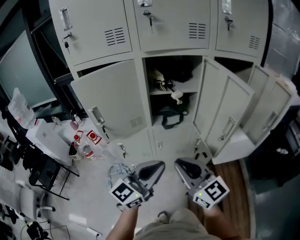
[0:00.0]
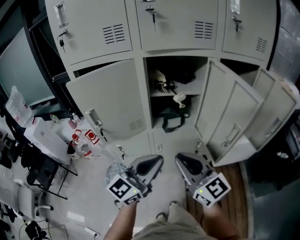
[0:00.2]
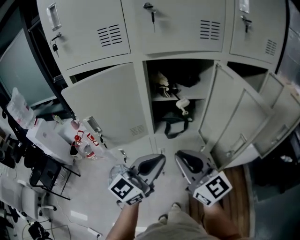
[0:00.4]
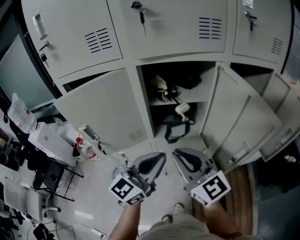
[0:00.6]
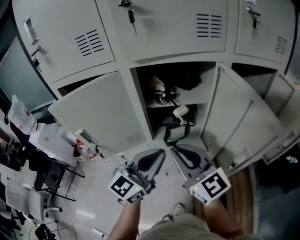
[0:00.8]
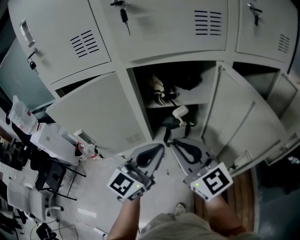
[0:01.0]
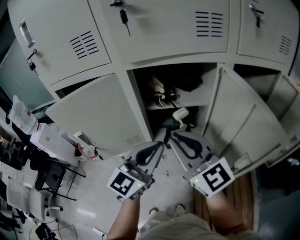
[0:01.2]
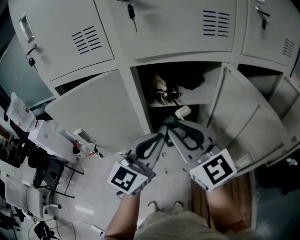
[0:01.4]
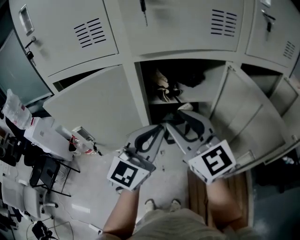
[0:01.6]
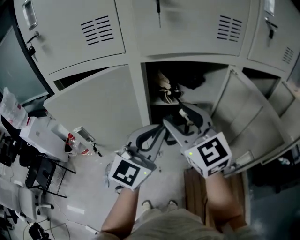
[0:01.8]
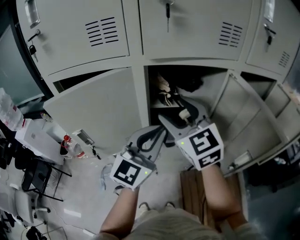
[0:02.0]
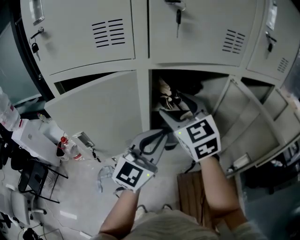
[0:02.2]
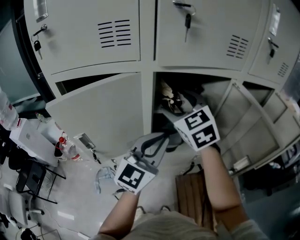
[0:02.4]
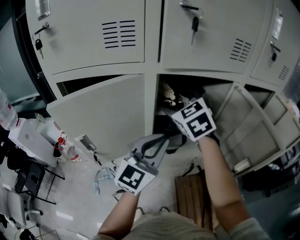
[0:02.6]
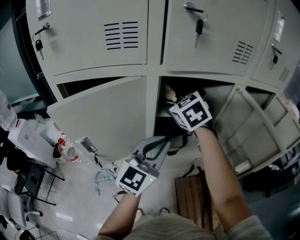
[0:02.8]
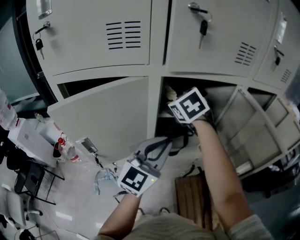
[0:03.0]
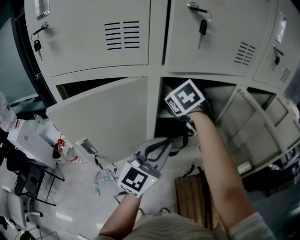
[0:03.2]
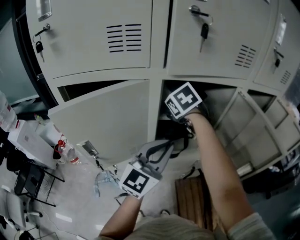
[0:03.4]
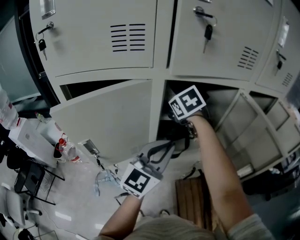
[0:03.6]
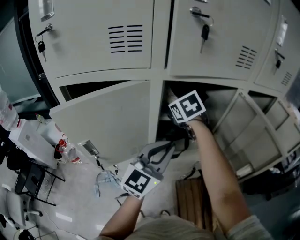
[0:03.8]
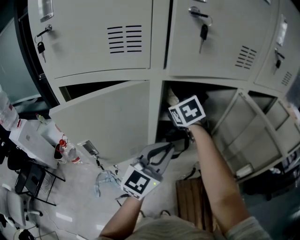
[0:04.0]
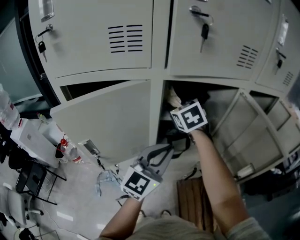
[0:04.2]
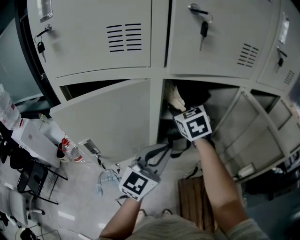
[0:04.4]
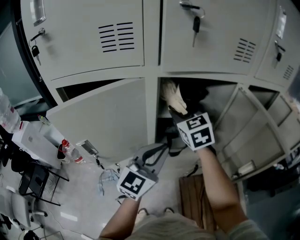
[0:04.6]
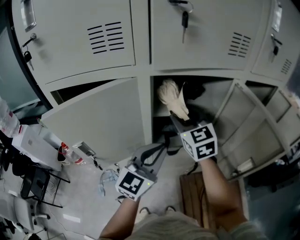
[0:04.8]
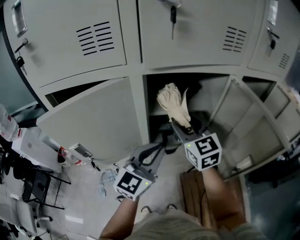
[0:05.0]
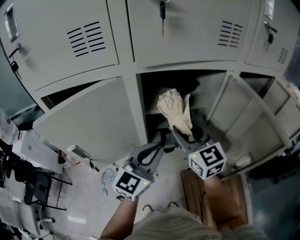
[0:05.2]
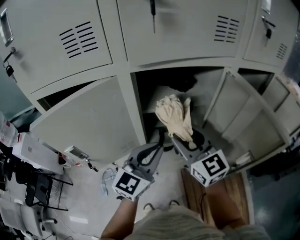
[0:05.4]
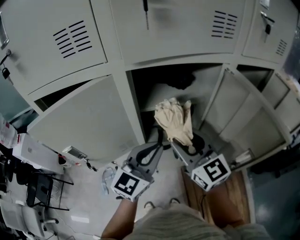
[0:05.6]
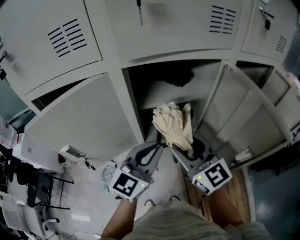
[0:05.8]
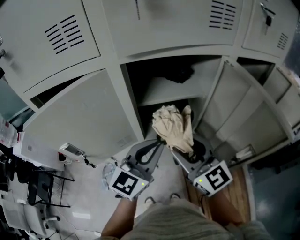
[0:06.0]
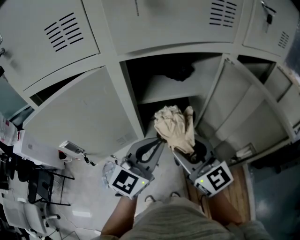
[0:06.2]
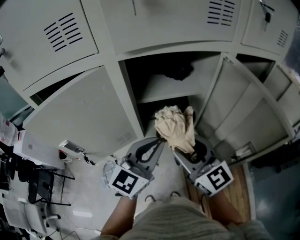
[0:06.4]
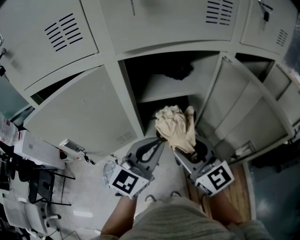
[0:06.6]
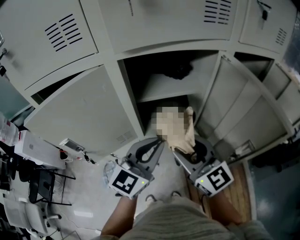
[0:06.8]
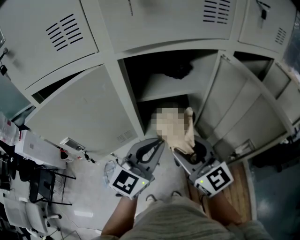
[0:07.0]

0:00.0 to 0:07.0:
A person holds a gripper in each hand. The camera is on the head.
0:00.0 to 0:01.4: The left gripper moves forward, approximately 20 cm. The right gripper moves forward and upward, about 25 cm.
0:01.4 to 0:02.8: The right gripper travels forward by about 20 cm, points its fingers about 30 degrees further downward, and opens up.
0:02.8 to 0:04.2: The right gripper closes its fingers.
0:04.2 to 0:05.6: The right gripper moves backward and to the right, roughly 20 cm, and tips its fingers upward by about 30 degrees.
0:05.6 to 0:07.0: The right gripper shifts roughly 5 cm backward.

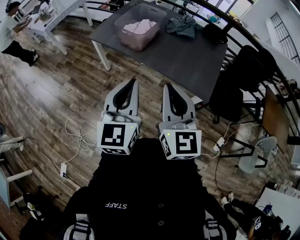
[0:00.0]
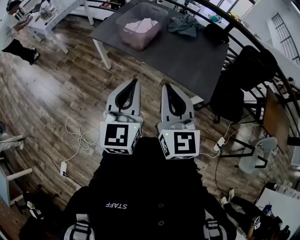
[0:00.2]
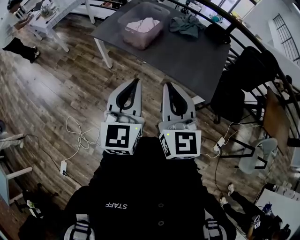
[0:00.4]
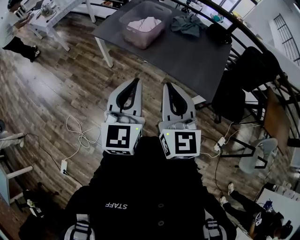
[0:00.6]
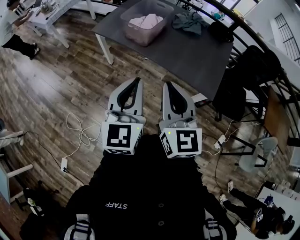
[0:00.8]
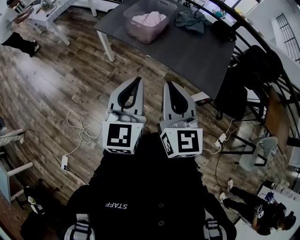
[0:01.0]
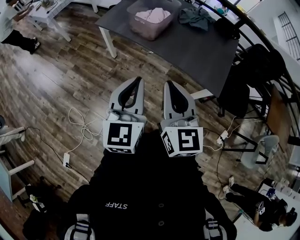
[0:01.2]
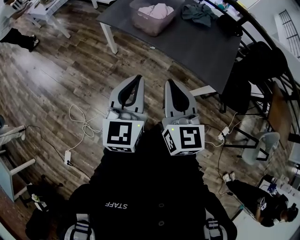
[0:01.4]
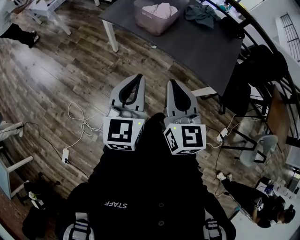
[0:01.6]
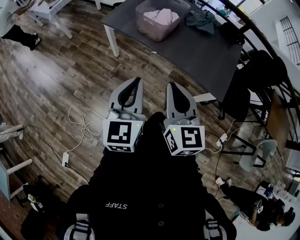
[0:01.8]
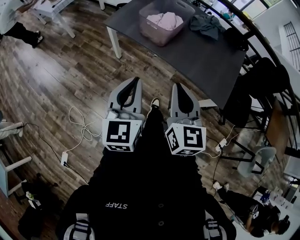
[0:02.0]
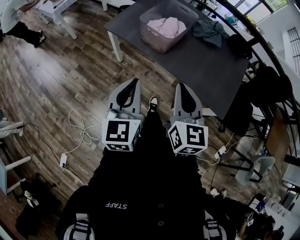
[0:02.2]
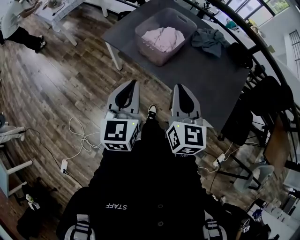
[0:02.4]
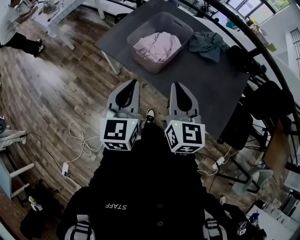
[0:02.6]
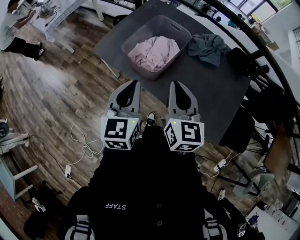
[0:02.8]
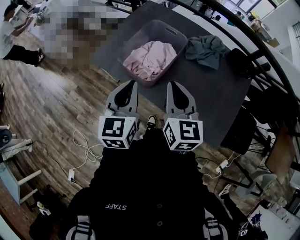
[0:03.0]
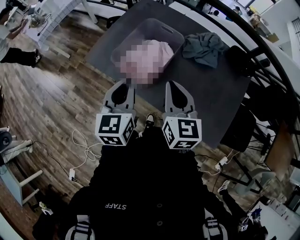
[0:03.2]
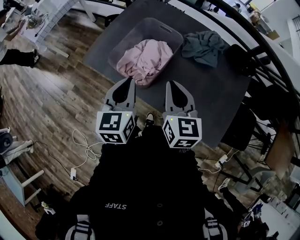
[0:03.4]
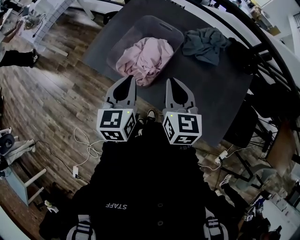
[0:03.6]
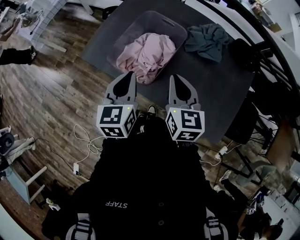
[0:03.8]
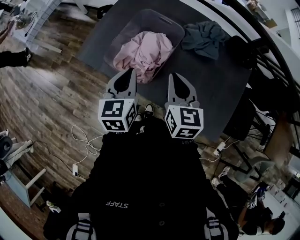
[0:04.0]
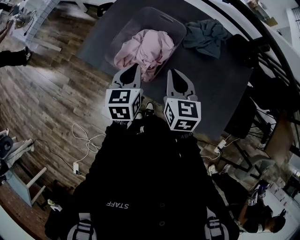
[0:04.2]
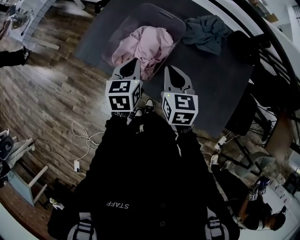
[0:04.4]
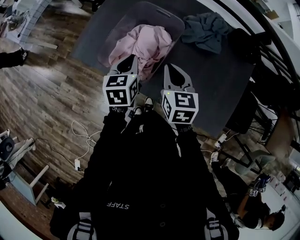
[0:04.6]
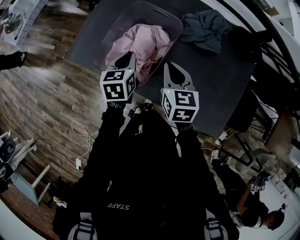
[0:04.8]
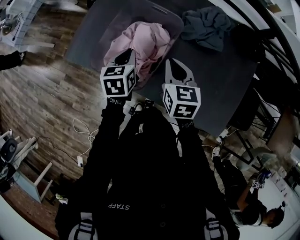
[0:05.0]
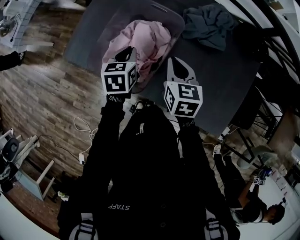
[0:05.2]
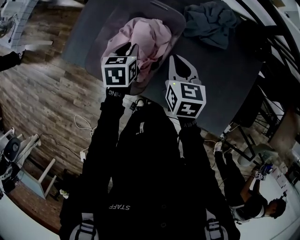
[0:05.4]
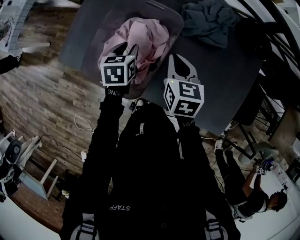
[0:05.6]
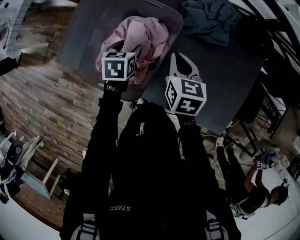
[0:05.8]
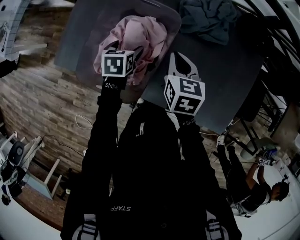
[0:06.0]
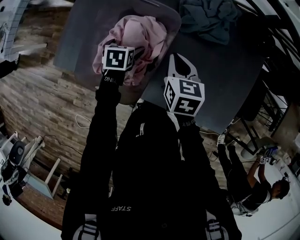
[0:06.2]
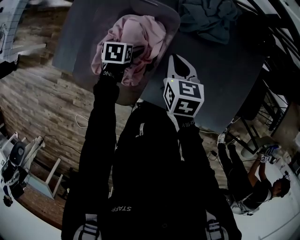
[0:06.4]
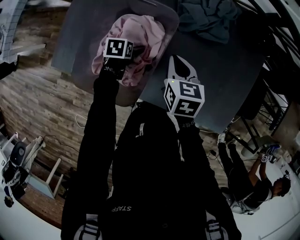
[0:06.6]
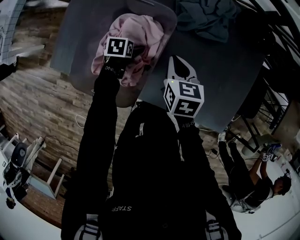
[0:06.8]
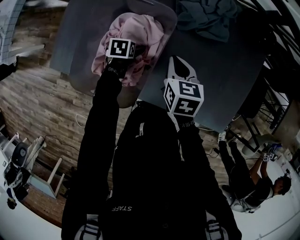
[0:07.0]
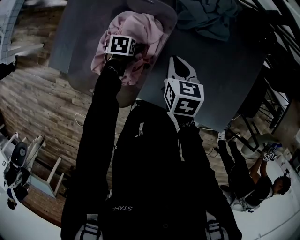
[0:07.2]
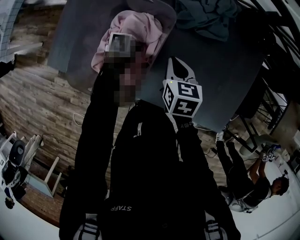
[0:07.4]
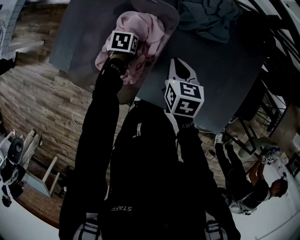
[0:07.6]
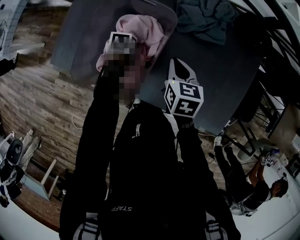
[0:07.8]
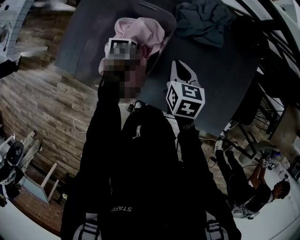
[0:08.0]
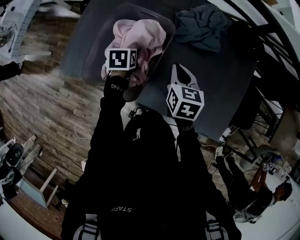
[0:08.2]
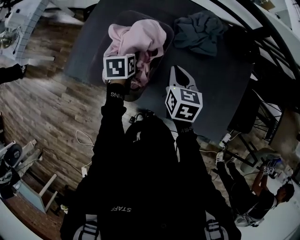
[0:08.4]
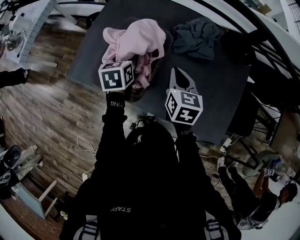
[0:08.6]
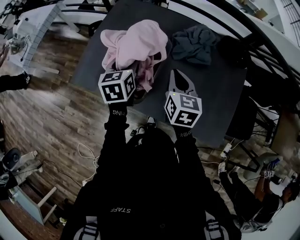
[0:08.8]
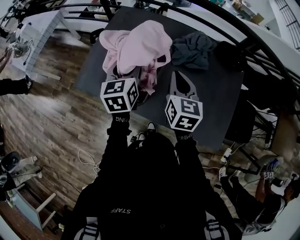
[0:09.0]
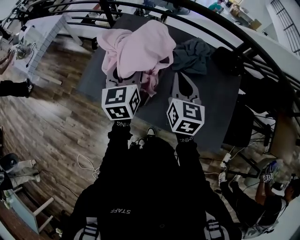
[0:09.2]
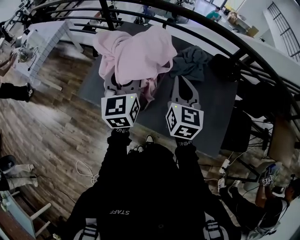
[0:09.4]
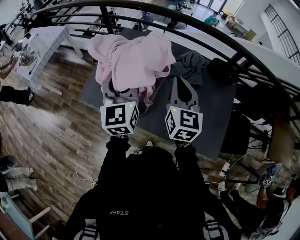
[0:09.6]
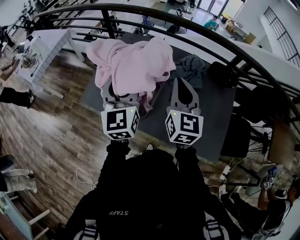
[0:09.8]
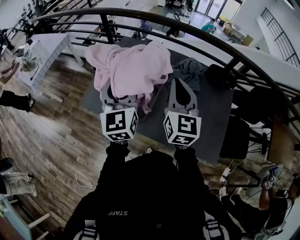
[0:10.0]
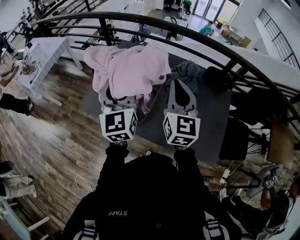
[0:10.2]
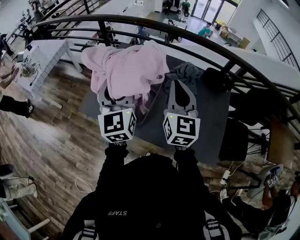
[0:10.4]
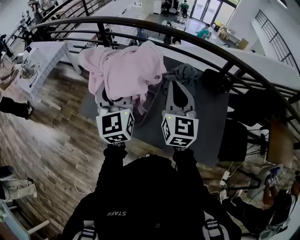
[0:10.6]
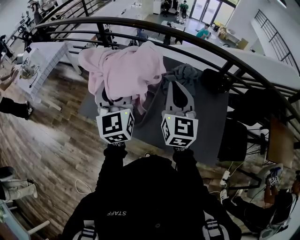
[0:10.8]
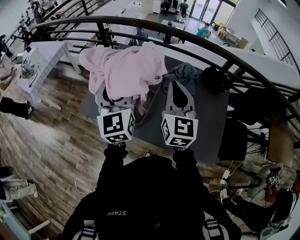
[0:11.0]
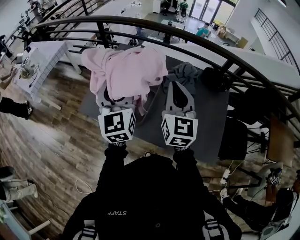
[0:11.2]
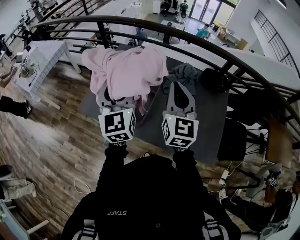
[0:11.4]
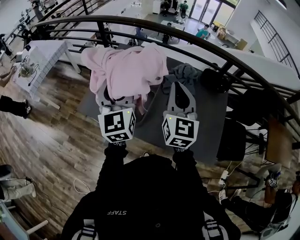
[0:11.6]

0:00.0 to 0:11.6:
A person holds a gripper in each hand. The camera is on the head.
0:00.0 to 0:01.4: The right gripper is displaced to the left and downward by about 10 cm. Meanwhile the left gripper goes approximately 10 cm to the left.
0:01.4 to 0:02.8: Both grippers travel together forward, some 35 cm.
0:02.8 to 0:04.4: The two grippers go some 20 cm forward and downward. The left gripper turns by approximately 20 degrees.
0:04.4 to 0:05.8: The right gripper goes about 15 cm forward, downward and to the right; the left gripper moves downward and forward, approximately 20 cm, rotates about 20 degrees, and opens up.
0:05.8 to 0:07.2: The right gripper shifts some 5 cm downward. Meanwhile the left gripper travels downward by roughly 15 cm, turns by roughly 20 degrees, and opens.
0:07.2 to 0:08.8: The left gripper shifts some 35 cm upward, angles its fingers upward, by roughly 40 degrees, and closes up, while the right gripper moves upward, approximately 20 cm, and swivels approximately 20 degrees.
0:08.8 to 0:10.2: The left gripper travels upward and backward by approximately 25 cm, and points its fingers some 40 degrees further upward. The right gripper travels upward by approximately 20 cm, and changes its angle by about 30 degrees.
0:10.2 to 0:11.6: The grippers stay close to where they were, moving slightly.

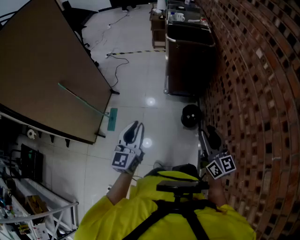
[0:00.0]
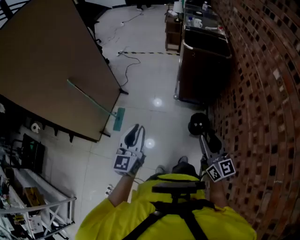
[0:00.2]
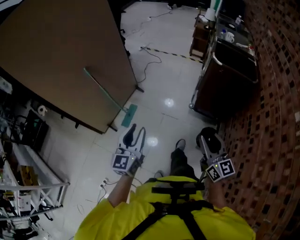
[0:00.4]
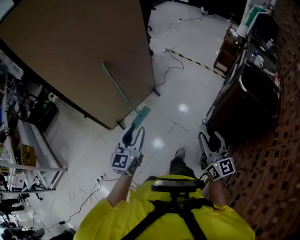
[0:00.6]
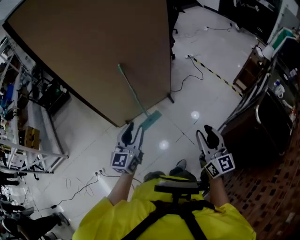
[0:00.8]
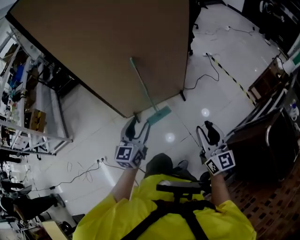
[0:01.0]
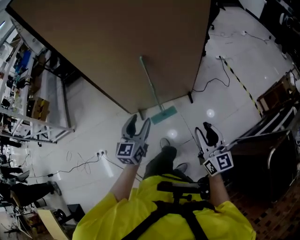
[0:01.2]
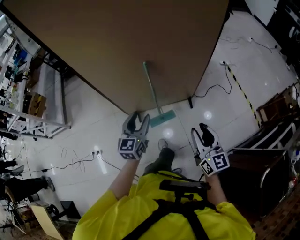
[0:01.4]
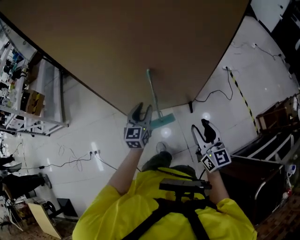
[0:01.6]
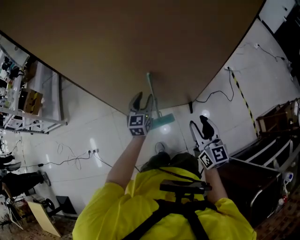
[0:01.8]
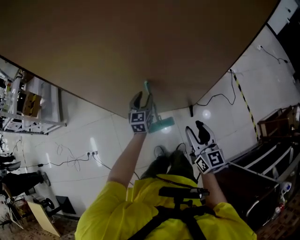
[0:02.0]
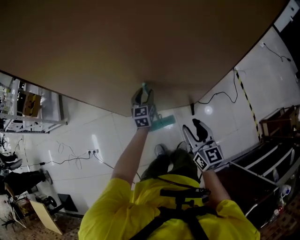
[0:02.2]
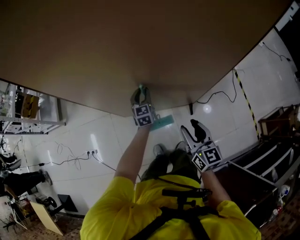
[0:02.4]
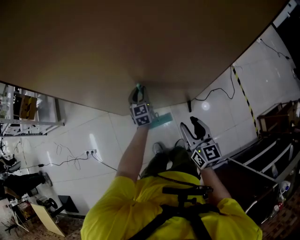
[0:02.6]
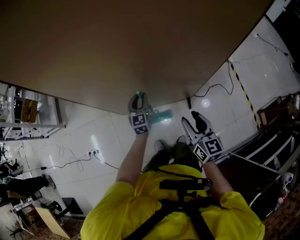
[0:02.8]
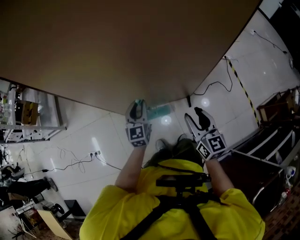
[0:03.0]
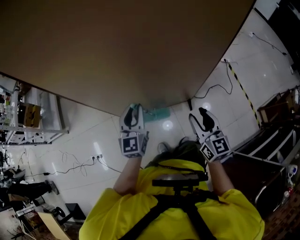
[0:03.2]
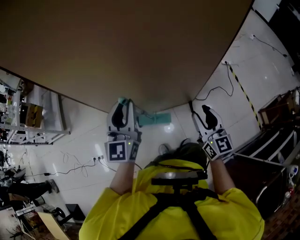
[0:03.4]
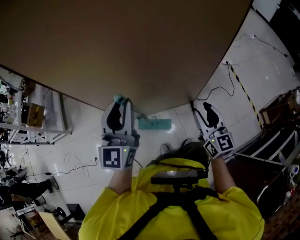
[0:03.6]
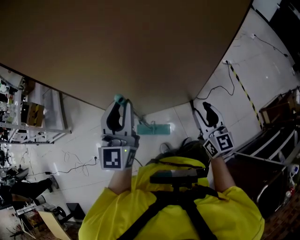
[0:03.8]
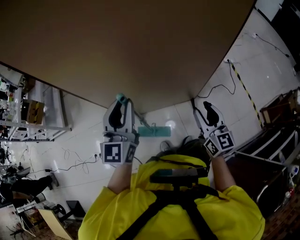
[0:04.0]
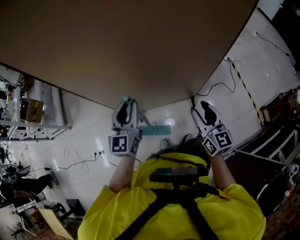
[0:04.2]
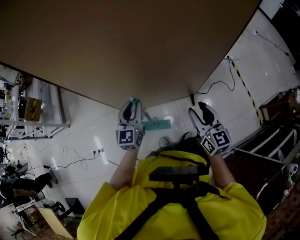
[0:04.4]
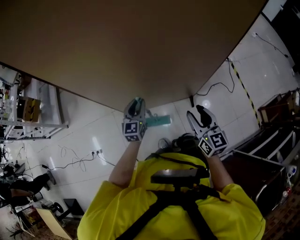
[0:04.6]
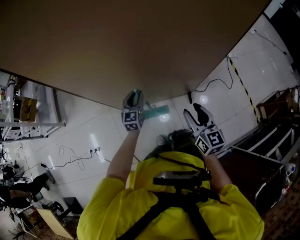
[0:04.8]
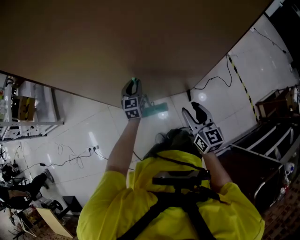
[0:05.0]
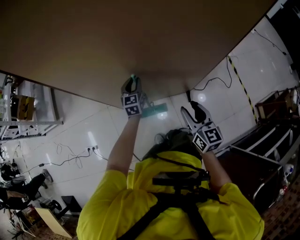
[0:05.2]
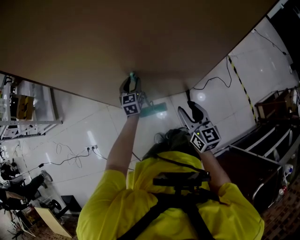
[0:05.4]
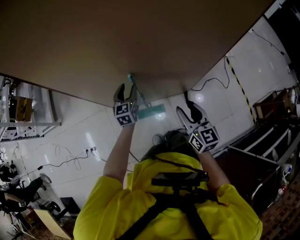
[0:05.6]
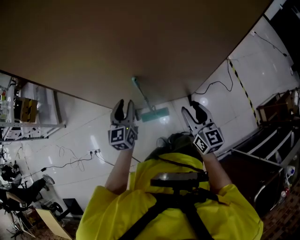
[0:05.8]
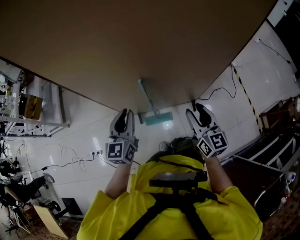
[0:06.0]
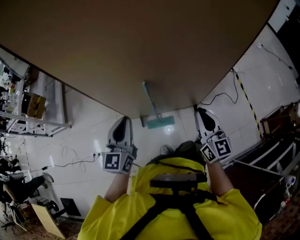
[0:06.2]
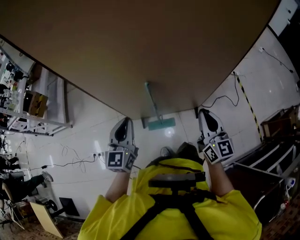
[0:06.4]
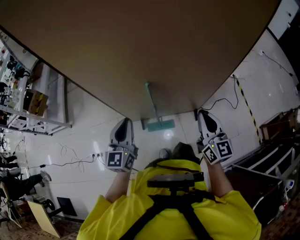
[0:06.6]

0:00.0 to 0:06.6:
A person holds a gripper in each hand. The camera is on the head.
0:00.0 to 0:01.6: Both grippers are carried approximately 70 cm. The left gripper swivels roughly 70 degrees, and opens; the right gripper rotates some 70 degrees.
0:01.6 to 0:03.2: The right gripper shifts roughly 10 cm forward, while the left gripper heads upward, covering roughly 5 cm, and moves some 25 cm forward and comes back.
0:03.2 to 0:05.0: The right gripper travels to the left and downward by approximately 5 cm. Meanwhile the left gripper is displaced downward and forward by approximately 20 cm.
0:05.0 to 0:06.6: The left gripper moves backward, upward and to the left, roughly 30 cm, and opens and closes again, while the right gripper moves upward, about 10 cm, and closes its fingers.
